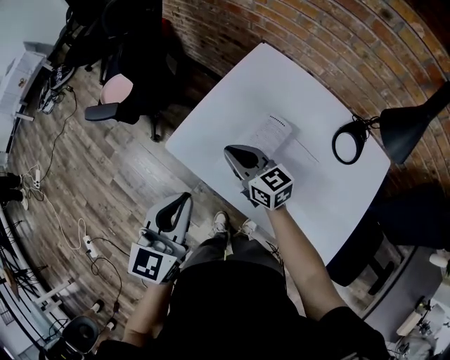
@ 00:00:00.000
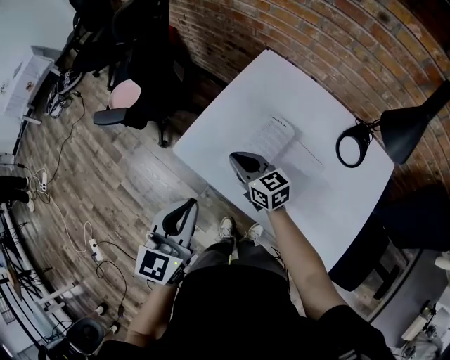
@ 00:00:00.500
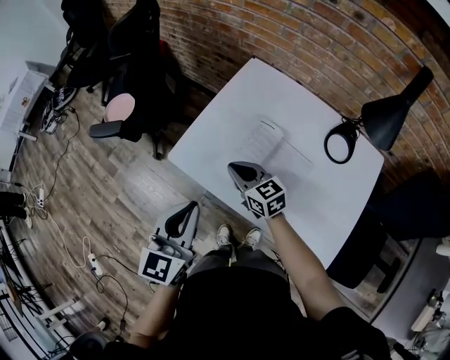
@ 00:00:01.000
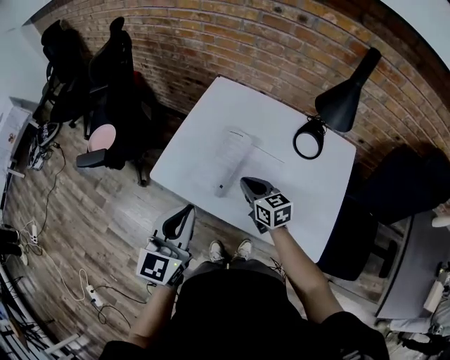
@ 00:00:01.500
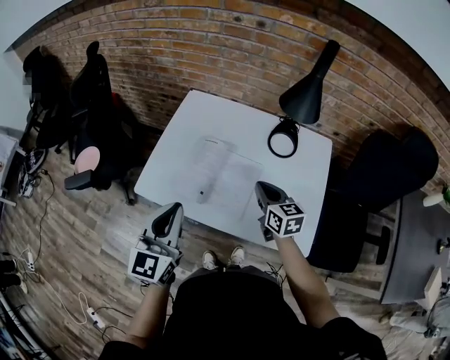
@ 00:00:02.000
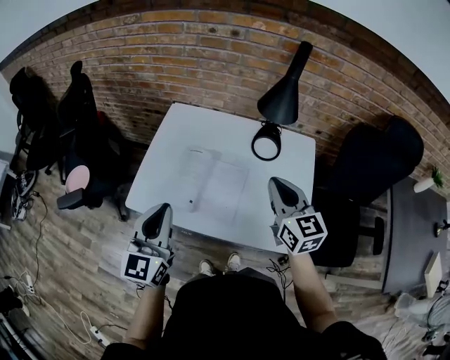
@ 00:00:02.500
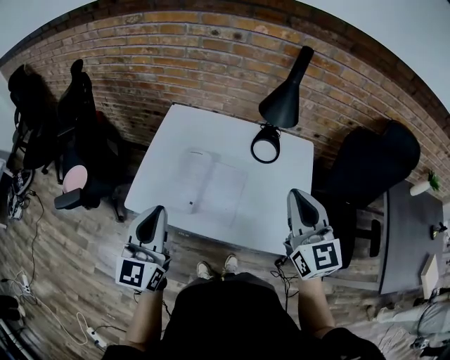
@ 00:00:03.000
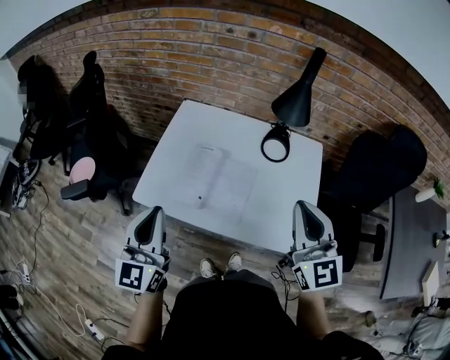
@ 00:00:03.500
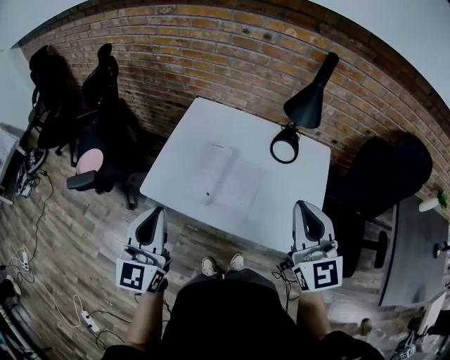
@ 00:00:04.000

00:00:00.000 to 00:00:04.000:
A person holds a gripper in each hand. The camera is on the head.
00:00:00.000 to 00:00:02.000: The right gripper moves approximately 30 cm, and rotates roughly 40 degrees. The left gripper changes place by about 10 cm.
00:00:02.000 to 00:00:04.000: The left gripper is displaced to the left by some 5 cm, while the right gripper shifts approximately 25 cm upward and backward, and turns by about 40 degrees.

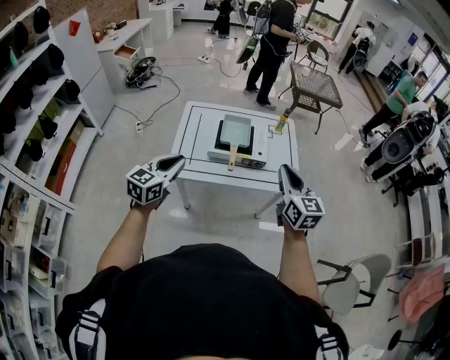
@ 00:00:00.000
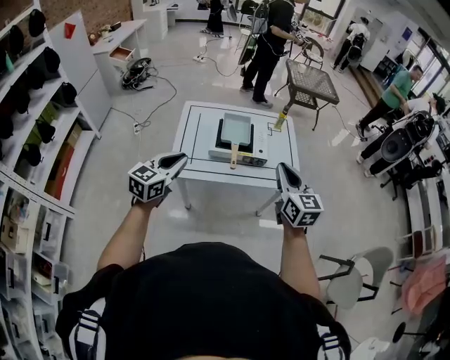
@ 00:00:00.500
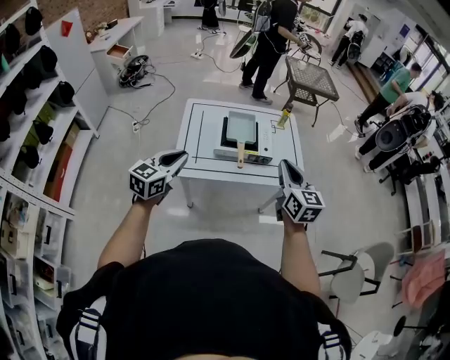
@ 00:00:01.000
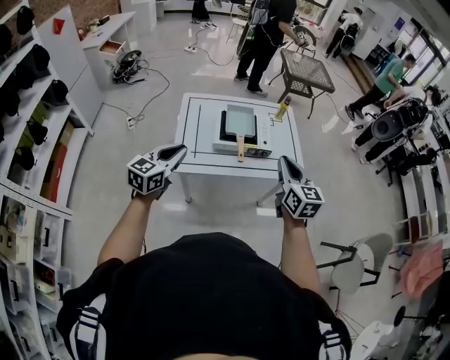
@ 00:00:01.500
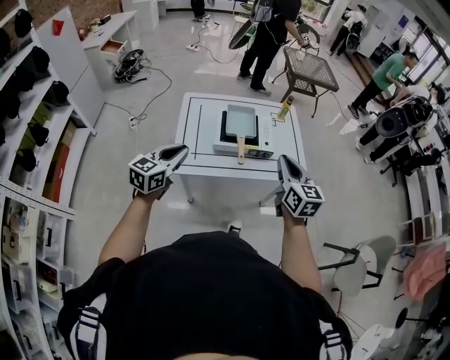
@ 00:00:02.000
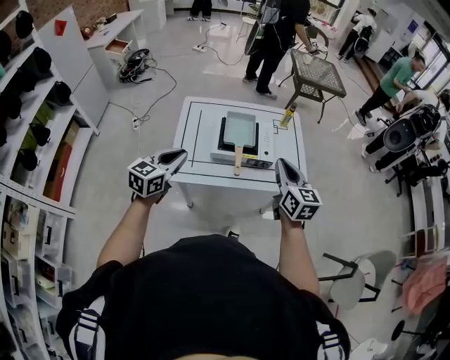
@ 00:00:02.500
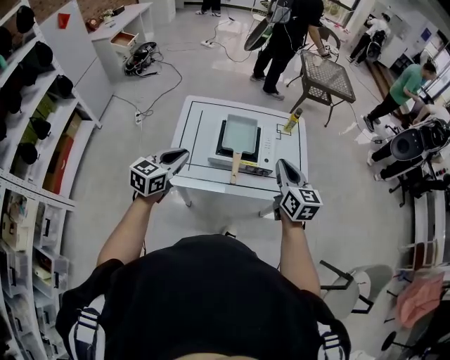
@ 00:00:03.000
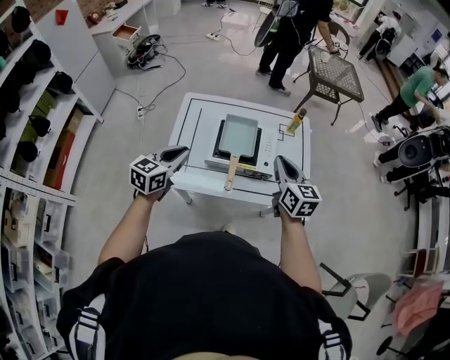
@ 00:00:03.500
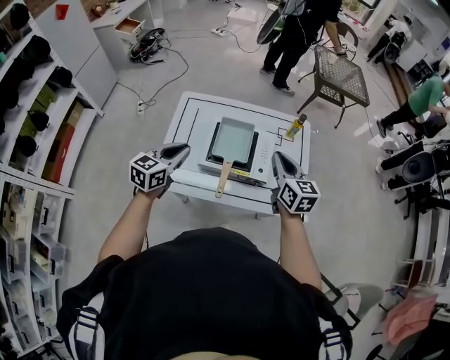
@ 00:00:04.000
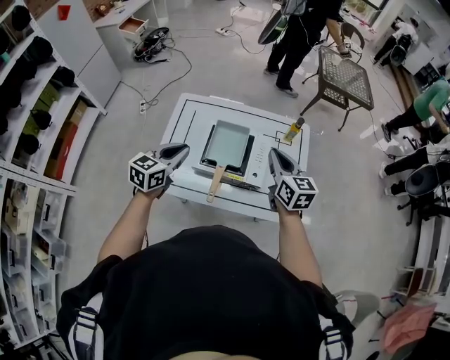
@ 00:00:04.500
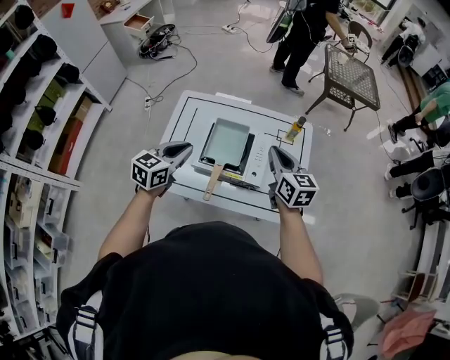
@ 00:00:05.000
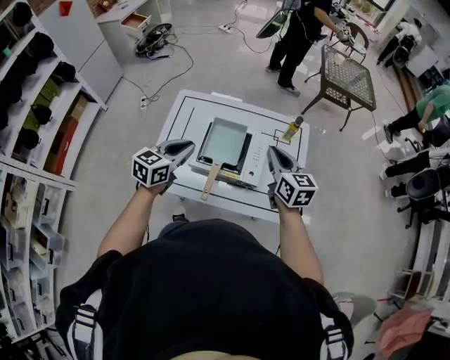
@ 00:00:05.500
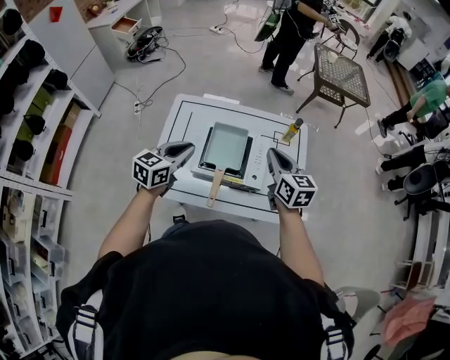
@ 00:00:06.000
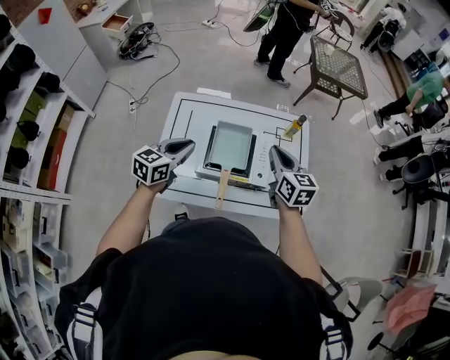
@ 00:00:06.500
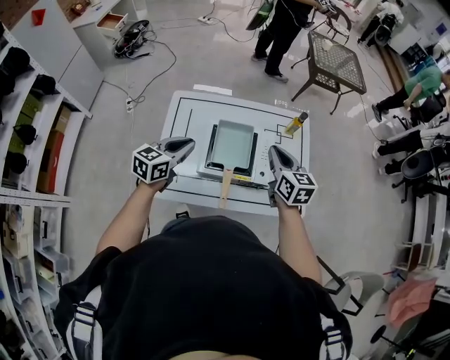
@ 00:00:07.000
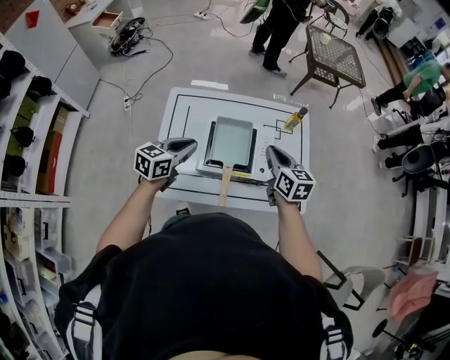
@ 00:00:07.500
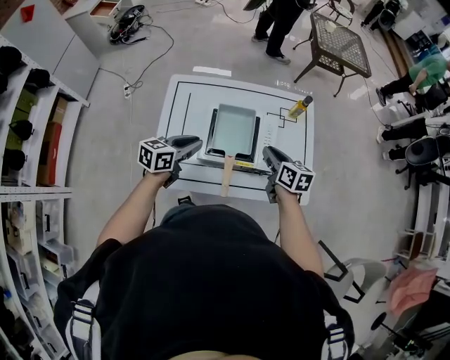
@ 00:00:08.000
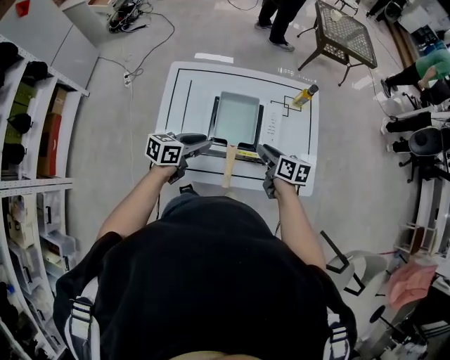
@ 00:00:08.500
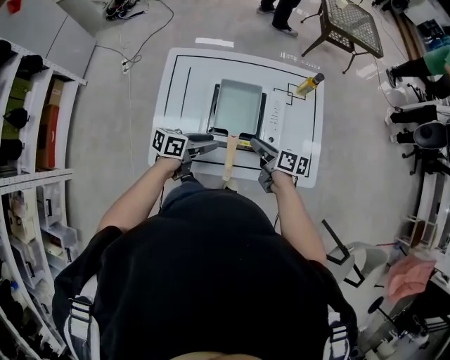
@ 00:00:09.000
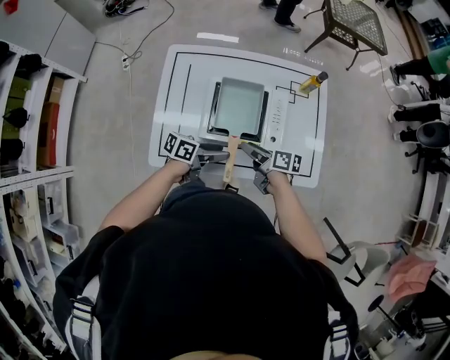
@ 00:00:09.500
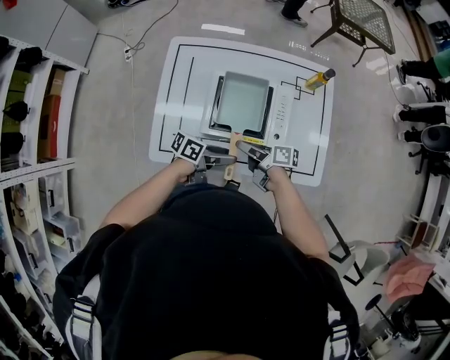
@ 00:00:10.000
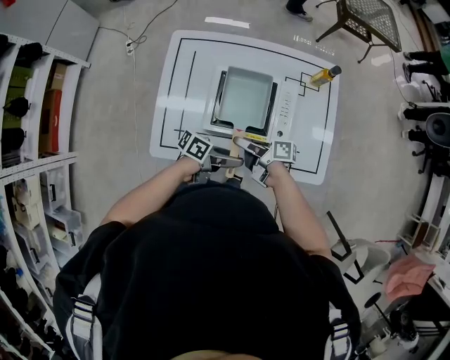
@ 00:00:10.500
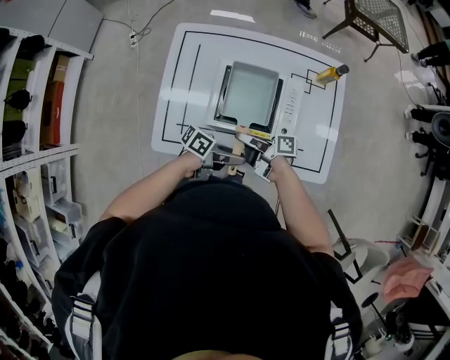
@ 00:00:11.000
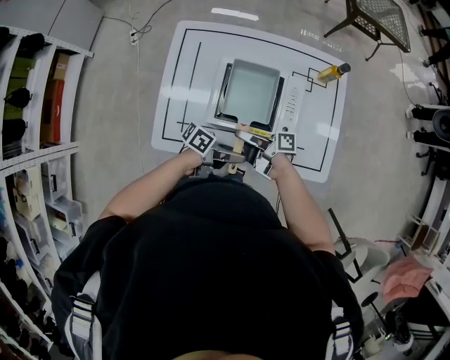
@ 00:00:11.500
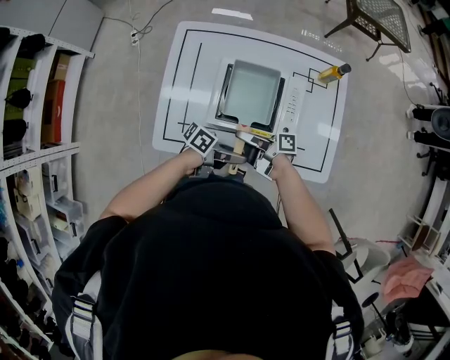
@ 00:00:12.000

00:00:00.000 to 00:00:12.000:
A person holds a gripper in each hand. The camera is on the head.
00:00:00.000 to 00:00:02.000: The two grippers go about 5 cm to the left.
00:00:02.000 to 00:00:04.000: The two grippers go about 20 cm forward.
00:00:04.000 to 00:00:06.000: The right gripper shifts roughly 5 cm forward; the left gripper ends up roughly 5 cm from where it was.
00:00:06.000 to 00:00:08.000: The grippers both shift downward by roughly 10 cm. The right gripper swivels about 20 degrees. Meanwhile the left gripper swivels roughly 20 degrees.
00:00:08.000 to 00:00:10.000: The left gripper ends up approximately 20 cm from where it was, rotates approximately 40 degrees, and opens up; the right gripper travels downward by some 10 cm, changes its angle by approximately 50 degrees, and opens up.
00:00:10.000 to 00:00:12.000: The right gripper swivels some 20 degrees. The left gripper closes.

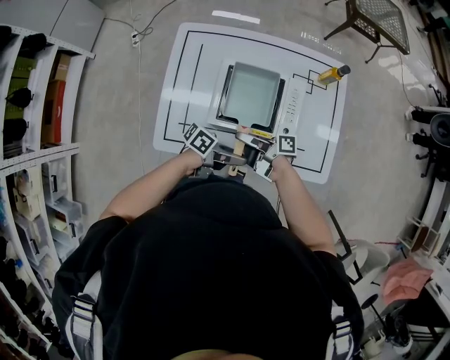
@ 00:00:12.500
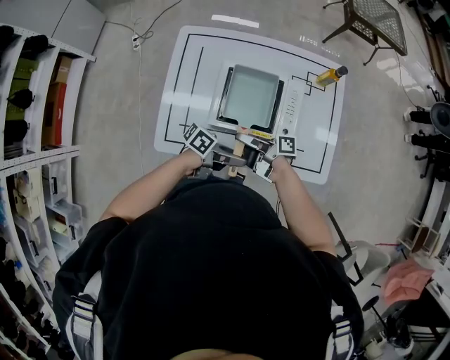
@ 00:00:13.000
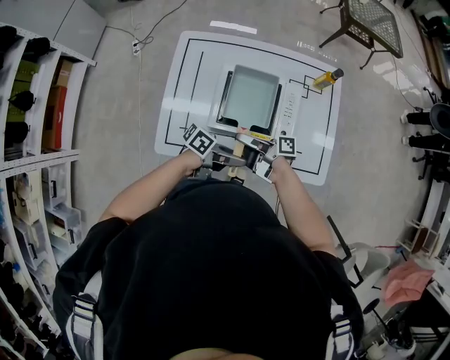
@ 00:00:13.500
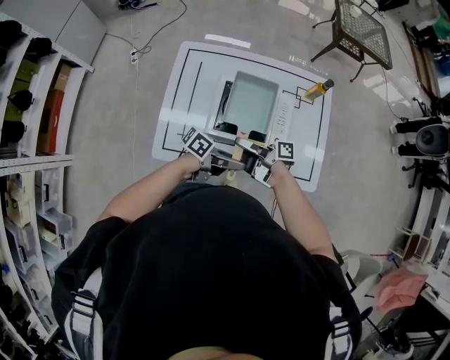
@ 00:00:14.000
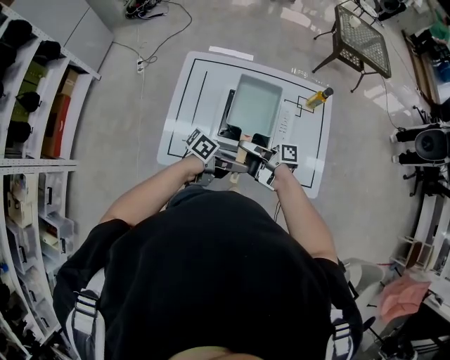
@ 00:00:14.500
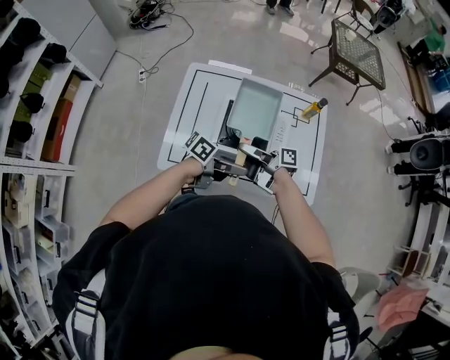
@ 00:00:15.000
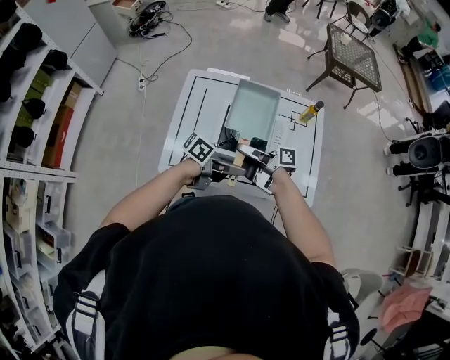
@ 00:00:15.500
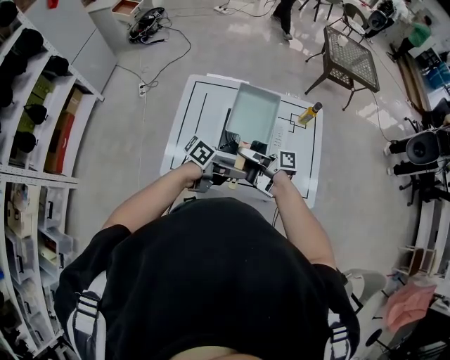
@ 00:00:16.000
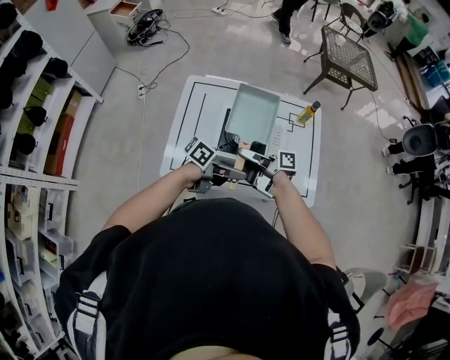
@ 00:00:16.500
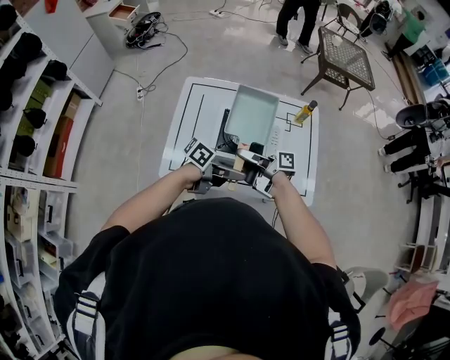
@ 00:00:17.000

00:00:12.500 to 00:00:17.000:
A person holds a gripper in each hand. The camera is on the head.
00:00:12.500 to 00:00:14.500: Both grippers move upward, roughly 10 cm.
00:00:14.500 to 00:00:17.000: The grippers both shift upward by some 5 cm.

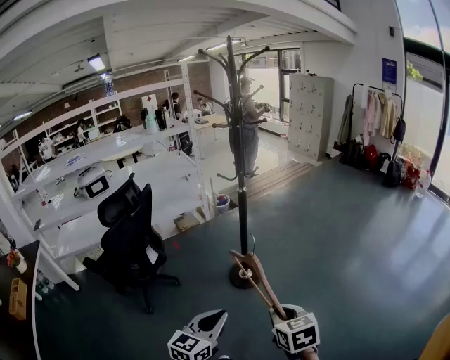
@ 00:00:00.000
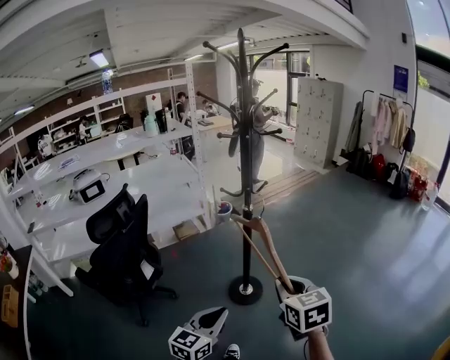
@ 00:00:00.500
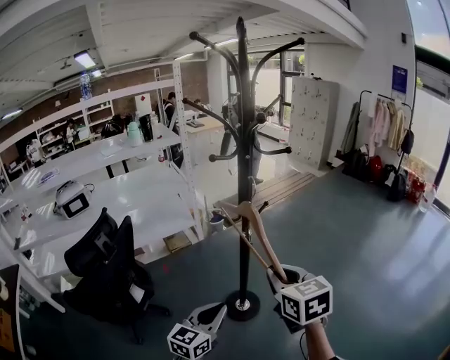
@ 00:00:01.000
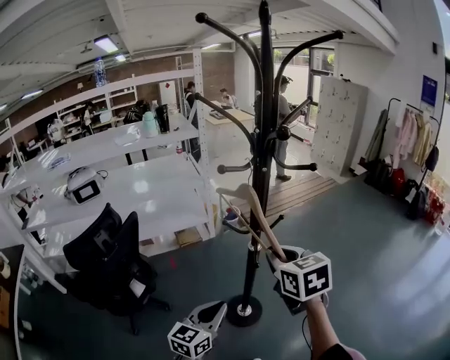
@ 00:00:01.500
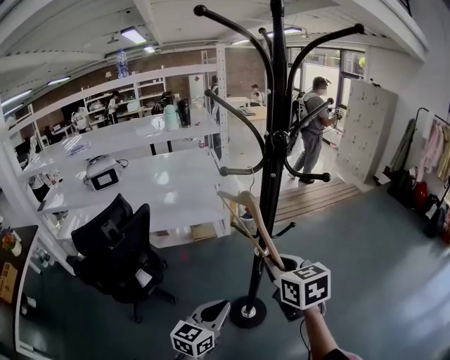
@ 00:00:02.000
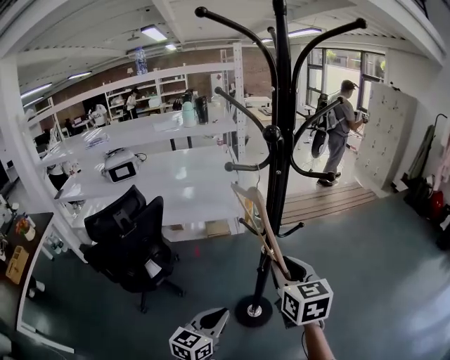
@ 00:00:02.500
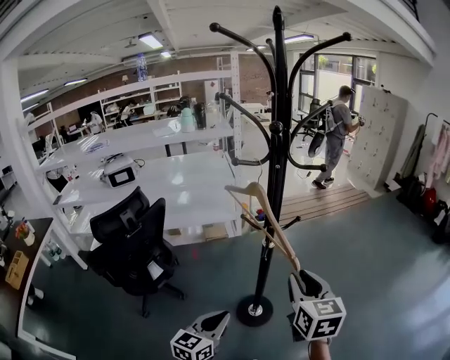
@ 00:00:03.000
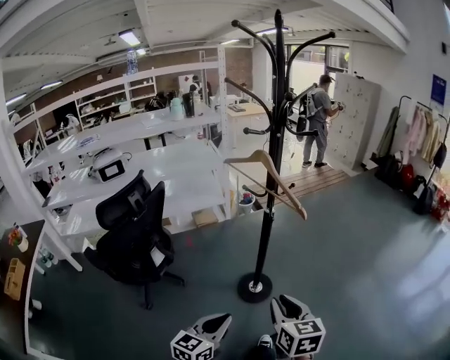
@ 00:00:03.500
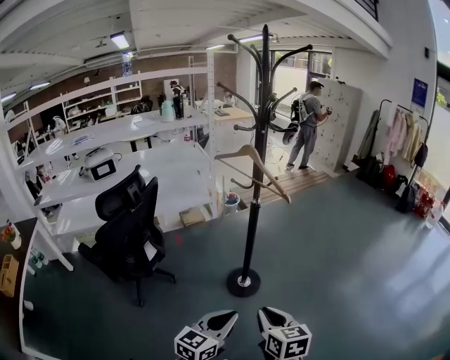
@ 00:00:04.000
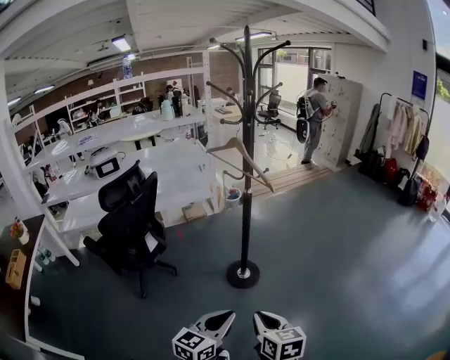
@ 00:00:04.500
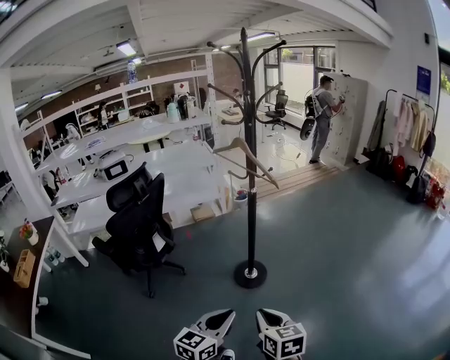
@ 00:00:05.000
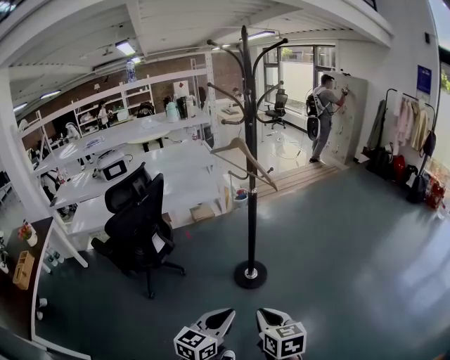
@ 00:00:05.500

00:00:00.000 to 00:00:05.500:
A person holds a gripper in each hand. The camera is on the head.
00:00:00.000 to 00:00:02.000: The pair of grippers is taken forward, approximately 50 cm. The right gripper swivels some 20 degrees.
00:00:02.000 to 00:00:03.500: The two grippers go about 30 cm backward.
00:00:03.500 to 00:00:05.500: The right gripper travels backward by about 20 cm. The left gripper goes some 20 cm backward and to the right.
